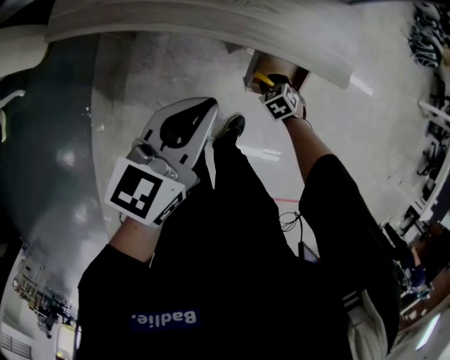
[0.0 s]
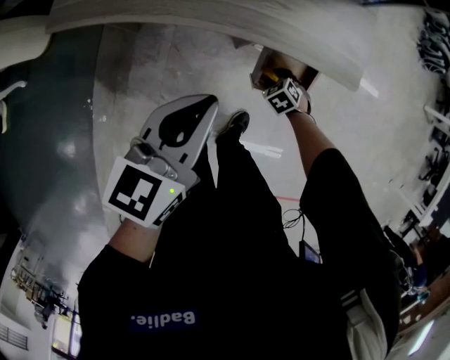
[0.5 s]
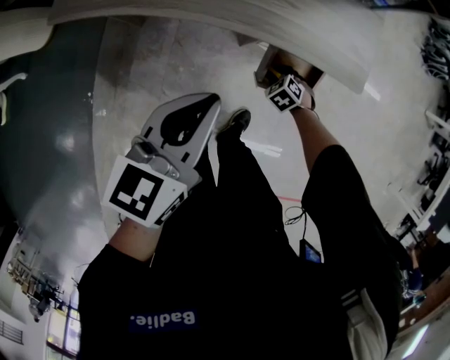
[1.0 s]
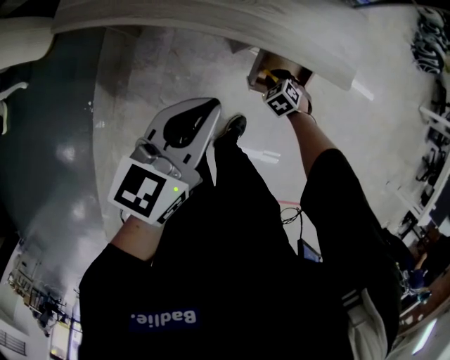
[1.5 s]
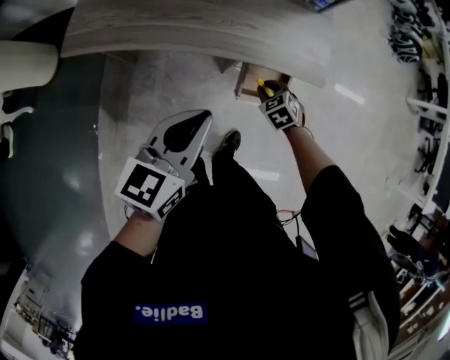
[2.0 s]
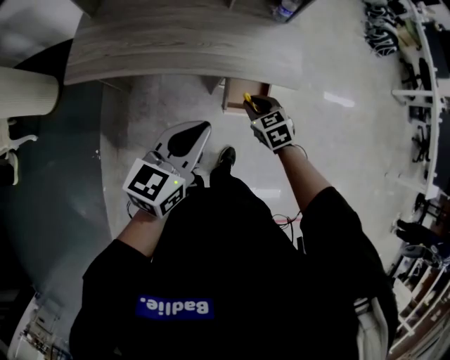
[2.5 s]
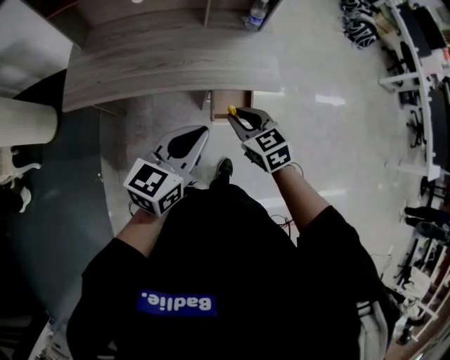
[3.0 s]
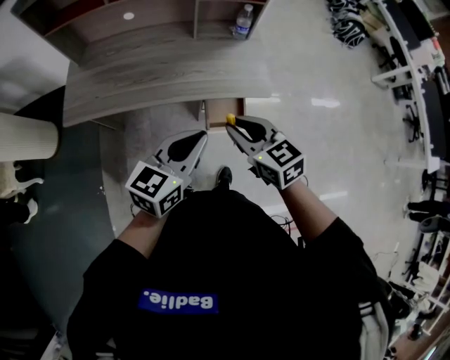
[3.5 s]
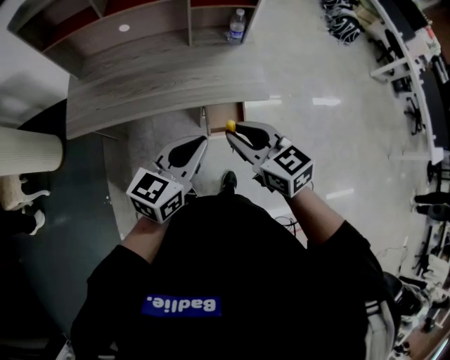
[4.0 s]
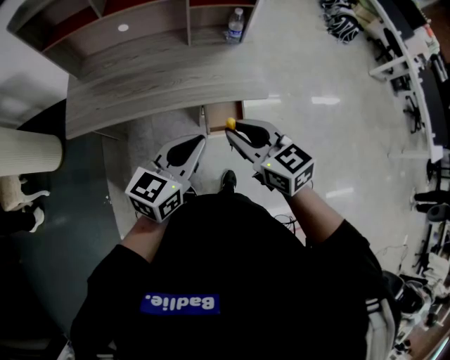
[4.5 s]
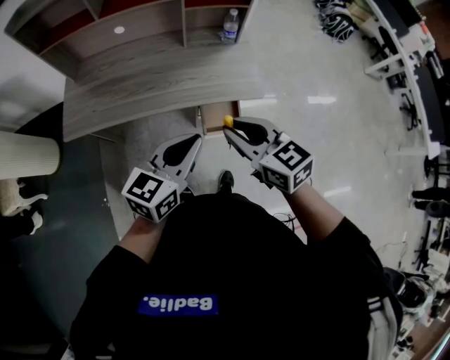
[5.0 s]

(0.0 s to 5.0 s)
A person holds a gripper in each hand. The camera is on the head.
0.0 s - 2.5 s: The left gripper shifts some 10 cm upward and backward; the right gripper goes approximately 25 cm upward, and changes its angle by approximately 20 degrees.
2.5 s - 5.0 s: The left gripper is displaced upward by some 5 cm. Meanwhile the right gripper shifts roughly 25 cm upward, and turns by some 30 degrees.

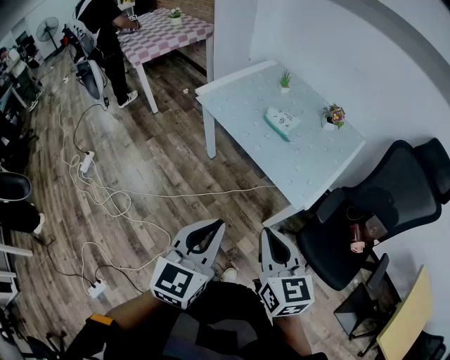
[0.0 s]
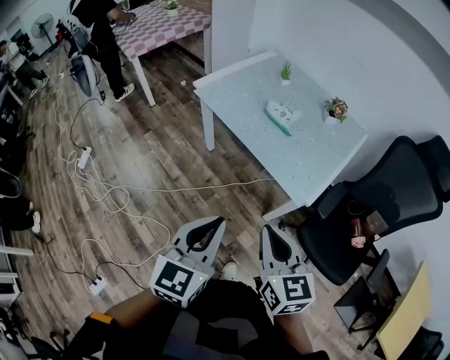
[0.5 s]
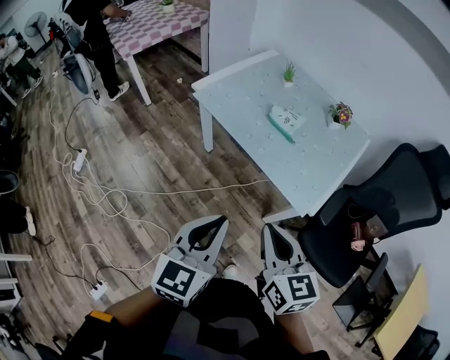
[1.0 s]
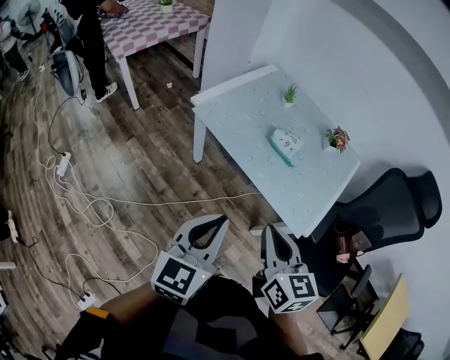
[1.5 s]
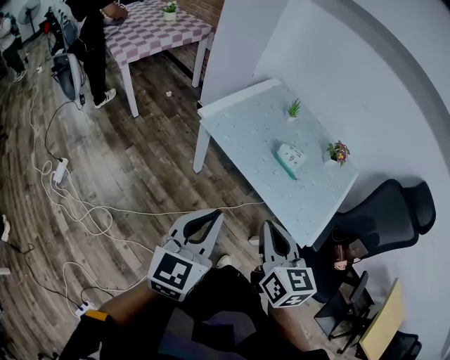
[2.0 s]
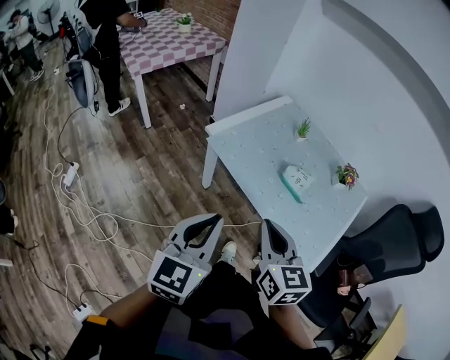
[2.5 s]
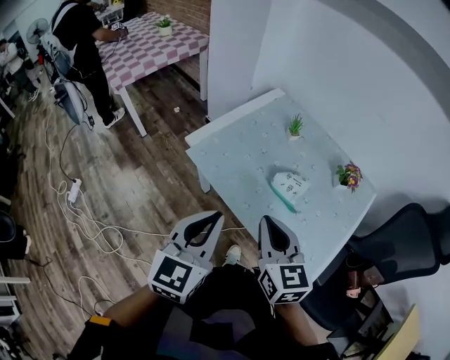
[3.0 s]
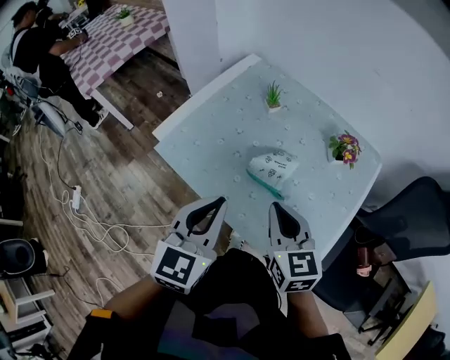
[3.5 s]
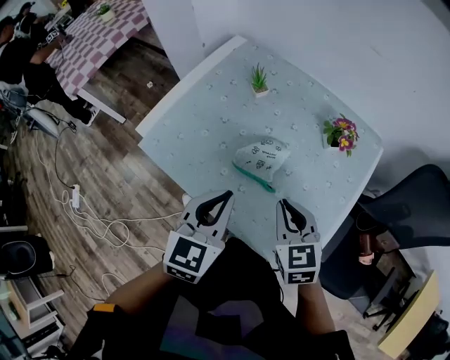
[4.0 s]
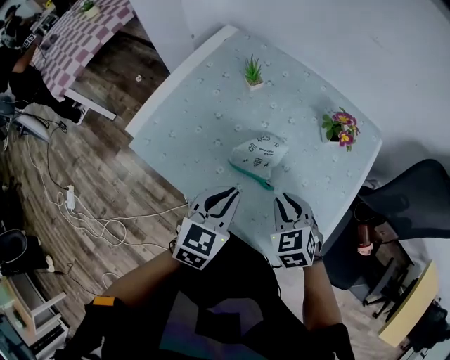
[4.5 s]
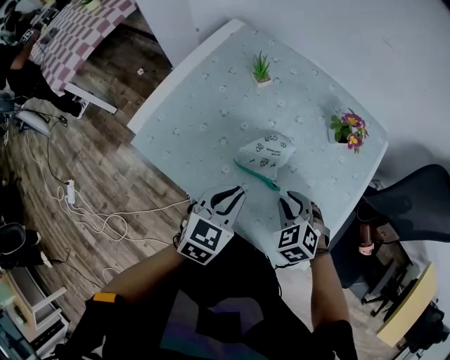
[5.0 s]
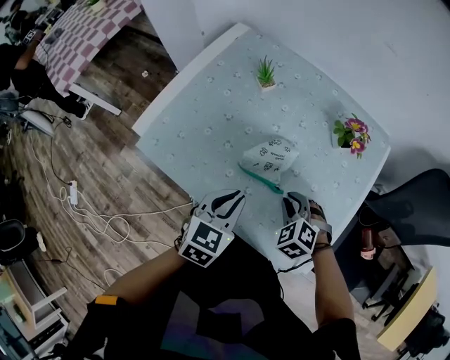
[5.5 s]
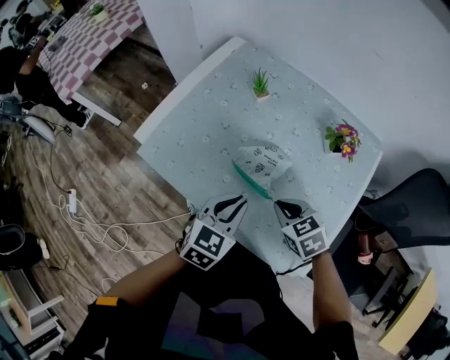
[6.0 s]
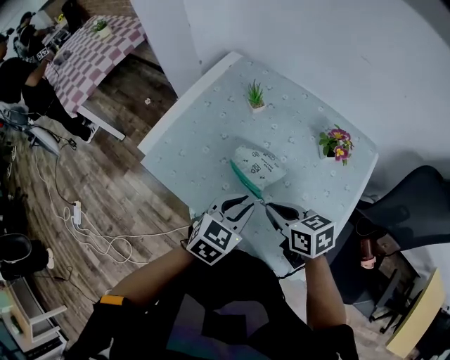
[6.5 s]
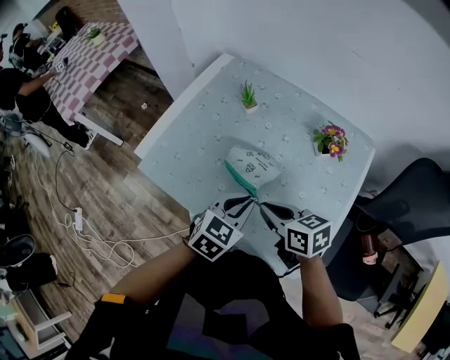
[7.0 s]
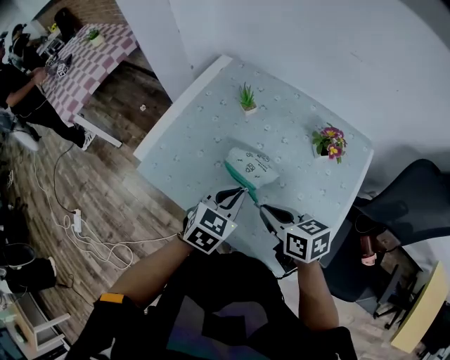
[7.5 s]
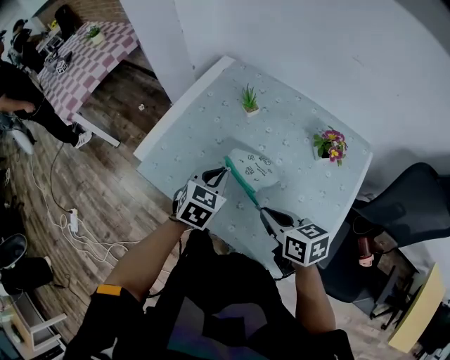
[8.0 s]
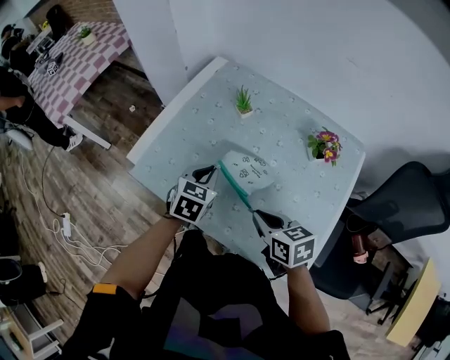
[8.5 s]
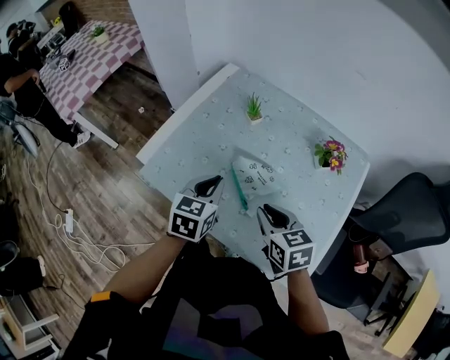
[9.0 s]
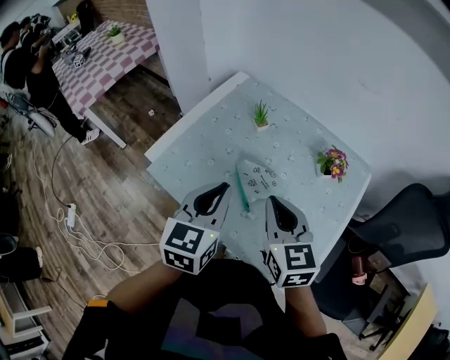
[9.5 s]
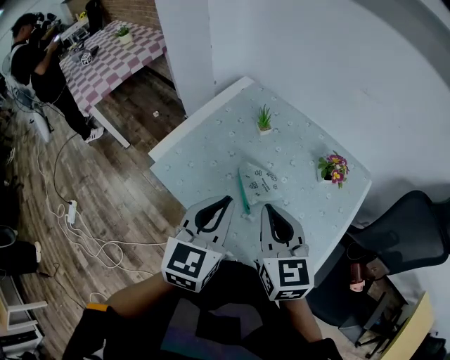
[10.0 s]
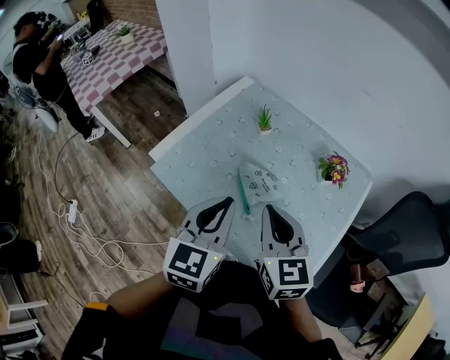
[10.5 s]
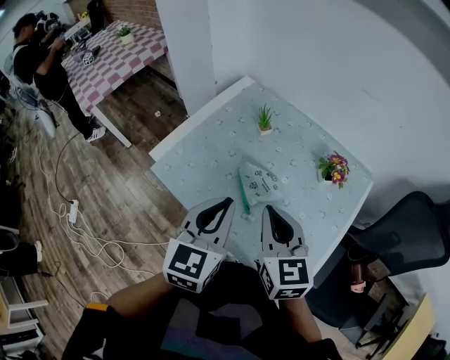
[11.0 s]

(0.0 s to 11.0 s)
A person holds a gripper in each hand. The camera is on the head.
0.0 s - 2.0 s: The right gripper travels forward and to the left by approximately 20 cm. The left gripper travels to the left and forward by some 25 cm.
2.0 s - 3.5 s: Both grippers move forward and to the right, some 30 cm.
3.5 s - 5.5 s: The two grippers go roughly 20 cm downward. The right gripper tilts its fingers some 40 degrees downward; the left gripper rotates some 20 degrees.
5.5 s - 7.5 s: The right gripper shifts some 10 cm upward, and twists approximately 60 degrees clockwise, seen from behind. Meanwhile the left gripper moves about 5 cm.
7.5 s - 9.0 s: The left gripper moves to the left and forward, some 10 cm, and swivels about 20 degrees.
9.0 s - 11.0 s: The right gripper moves upward, approximately 10 cm, and changes its angle by roughly 20 degrees. Meanwhile the left gripper shifts roughly 15 cm upward and backward.

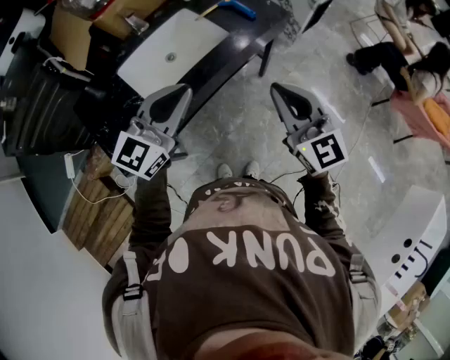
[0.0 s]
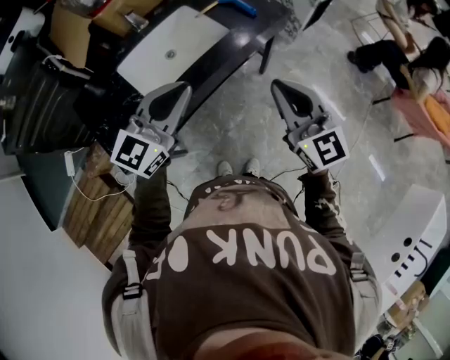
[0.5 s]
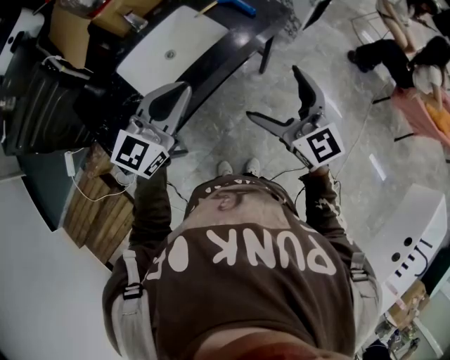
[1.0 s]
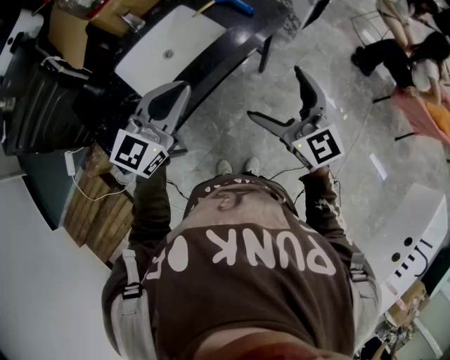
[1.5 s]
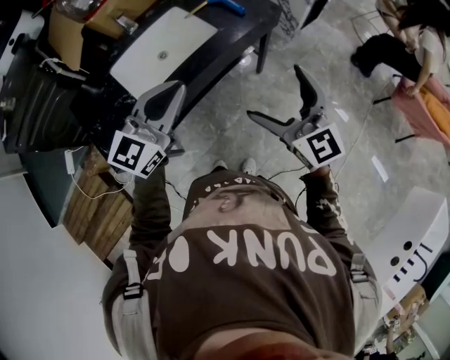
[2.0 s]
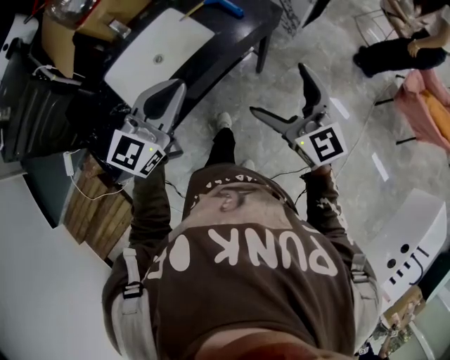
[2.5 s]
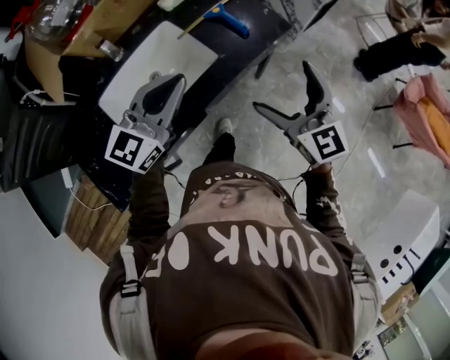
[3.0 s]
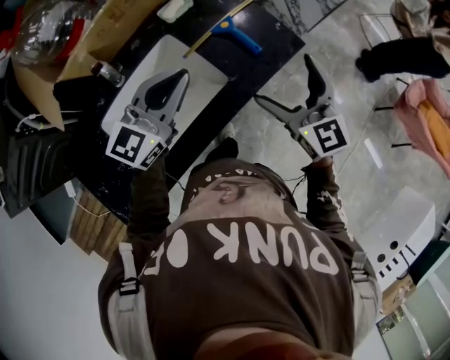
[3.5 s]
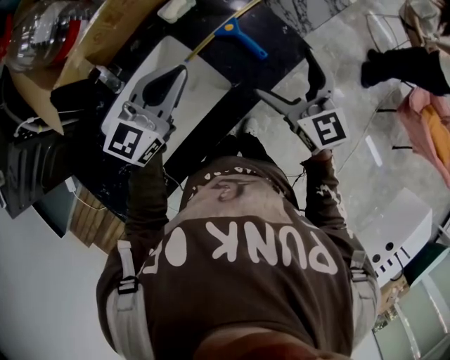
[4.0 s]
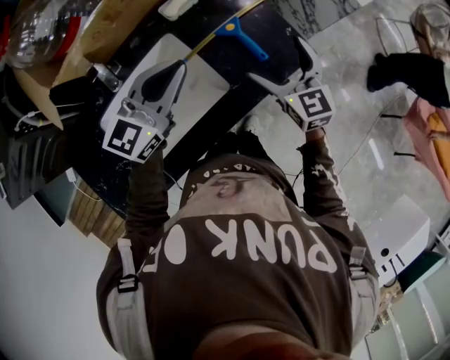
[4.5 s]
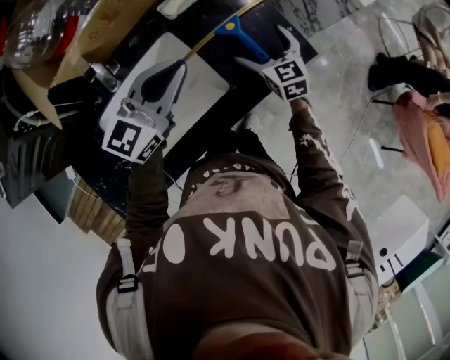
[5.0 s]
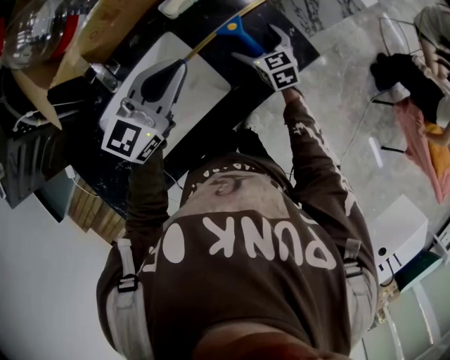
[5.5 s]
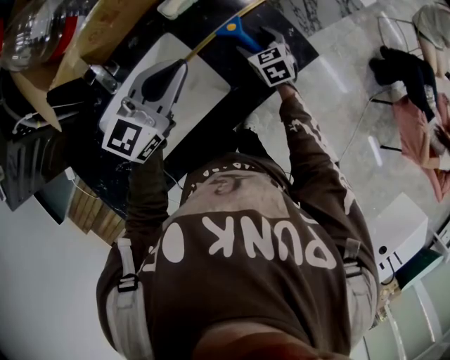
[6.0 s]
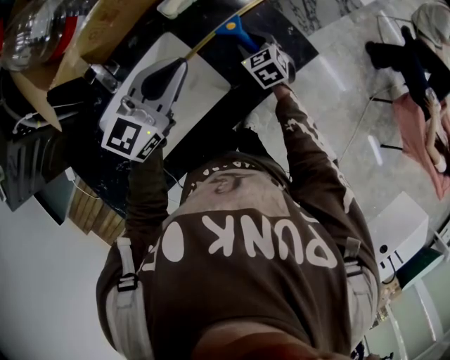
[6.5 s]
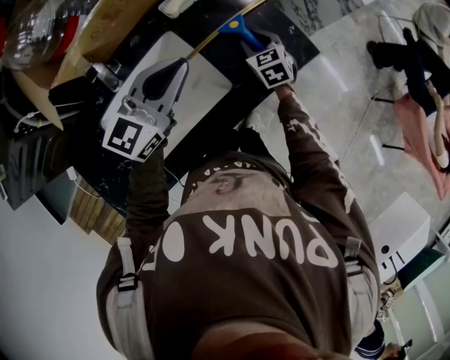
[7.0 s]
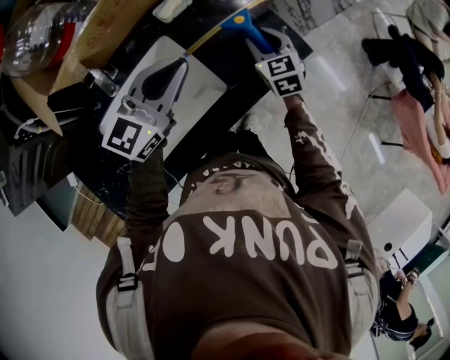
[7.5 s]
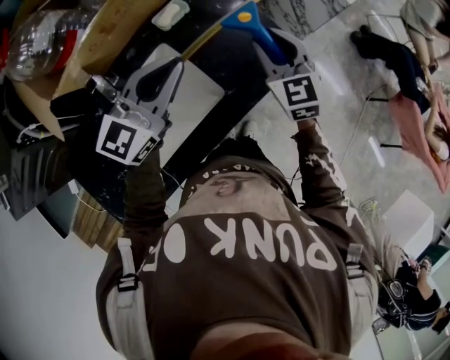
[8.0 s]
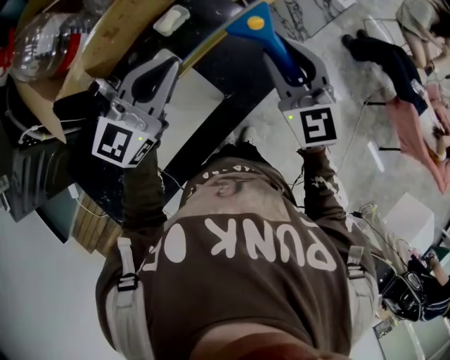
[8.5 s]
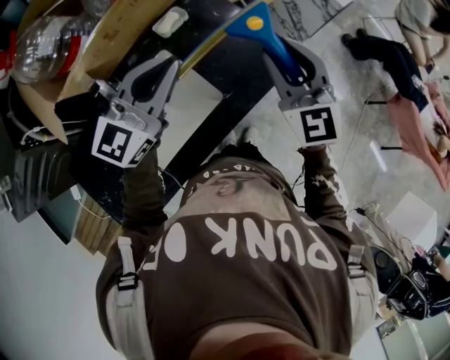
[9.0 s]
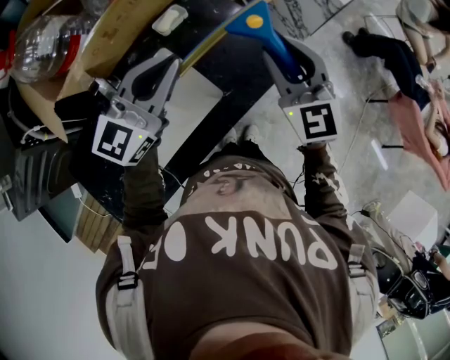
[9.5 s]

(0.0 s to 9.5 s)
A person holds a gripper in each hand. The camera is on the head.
0.0 s - 2.0 s: The right gripper opens.
2.0 s - 4.0 s: The grippers both shift forward by about 35 cm.
4.0 s - 5.5 s: The right gripper travels downward and forward by some 25 cm, and changes its angle by about 20 degrees.
5.5 s - 7.5 s: The right gripper goes about 5 cm upward, and closes.
7.5 s - 9.5 s: The left gripper is displaced upward by approximately 5 cm. The right gripper travels upward by roughly 20 cm, and swivels roughly 30 degrees.

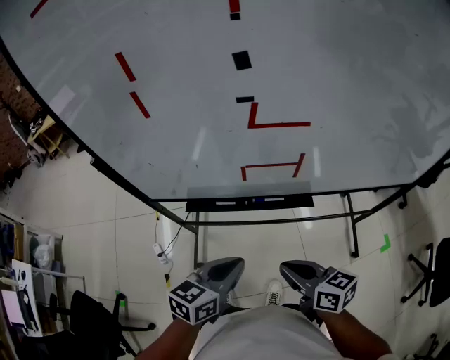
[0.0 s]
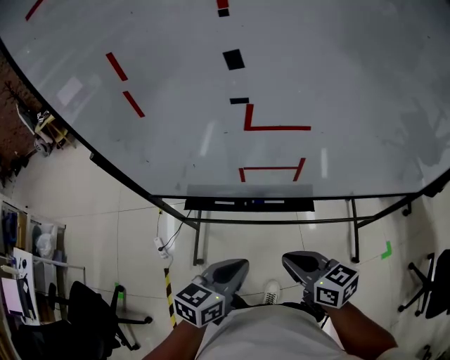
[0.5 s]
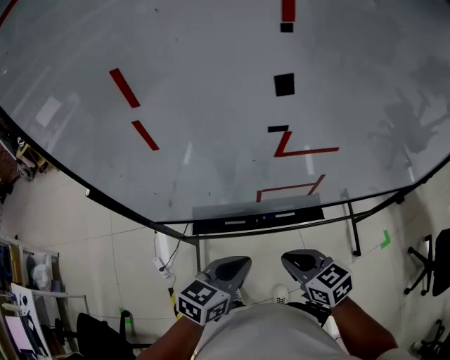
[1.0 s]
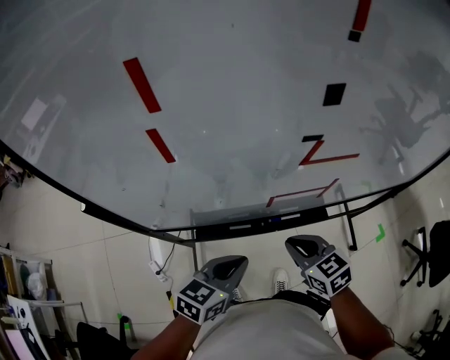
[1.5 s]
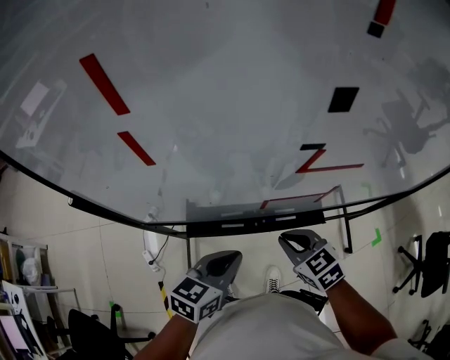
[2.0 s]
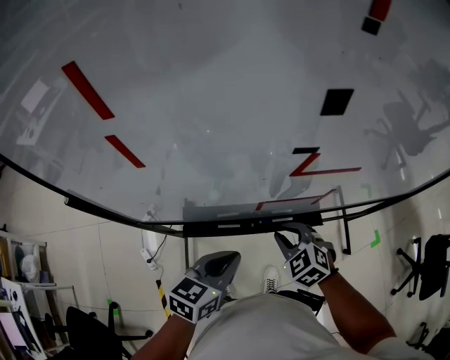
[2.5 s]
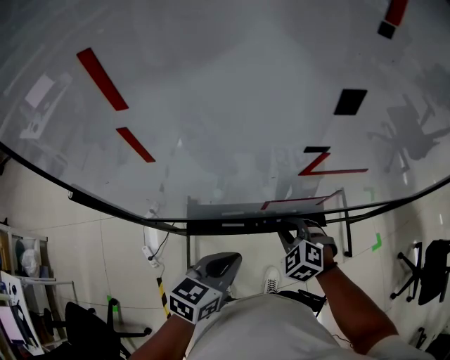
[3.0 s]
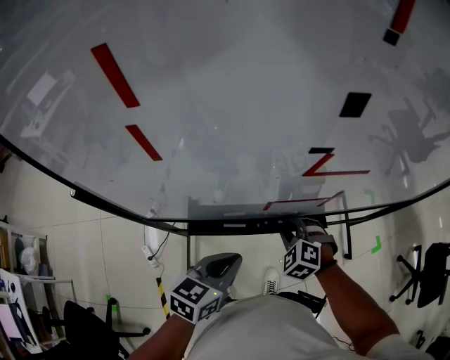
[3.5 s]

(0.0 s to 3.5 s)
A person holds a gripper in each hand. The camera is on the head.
0.0 s - 2.0 s: Both grippers travel together forward, some 15 cm. The right gripper turns by roughly 40 degrees.
2.0 s - 3.5 s: The right gripper travels downward by about 5 cm, and rotates some 40 degrees.
